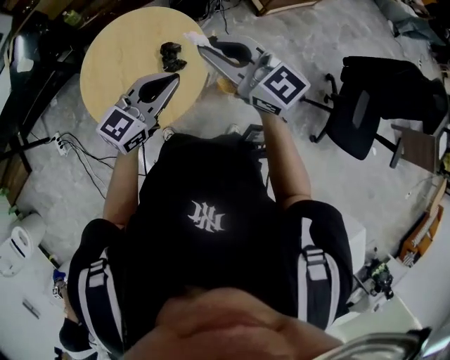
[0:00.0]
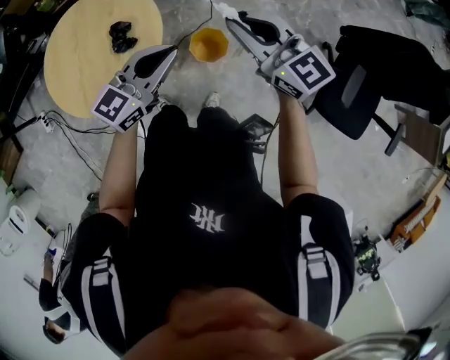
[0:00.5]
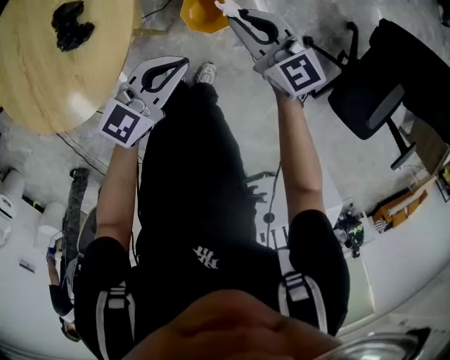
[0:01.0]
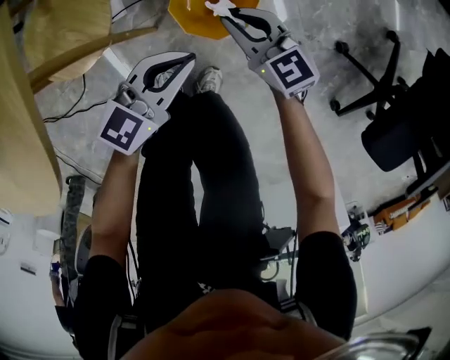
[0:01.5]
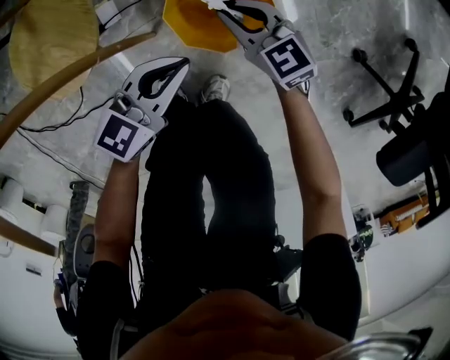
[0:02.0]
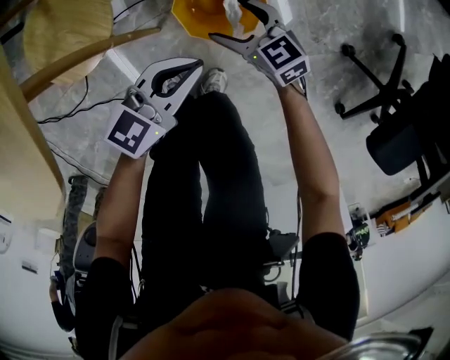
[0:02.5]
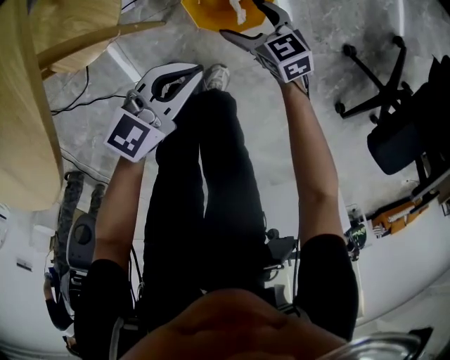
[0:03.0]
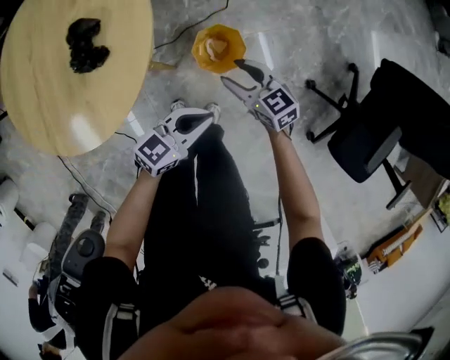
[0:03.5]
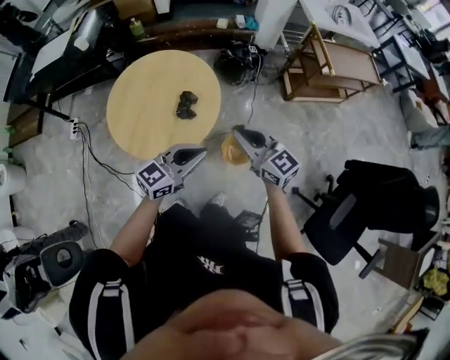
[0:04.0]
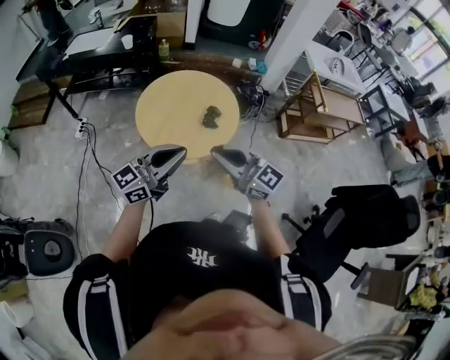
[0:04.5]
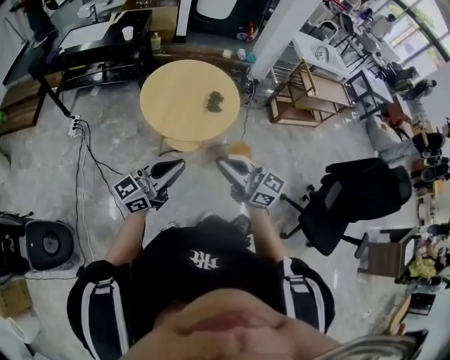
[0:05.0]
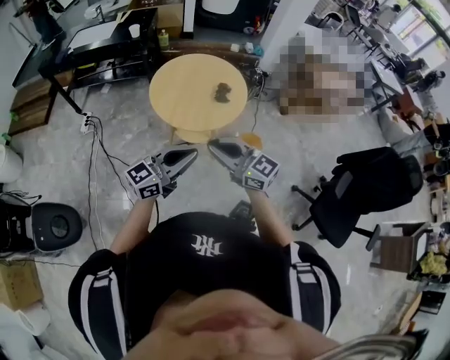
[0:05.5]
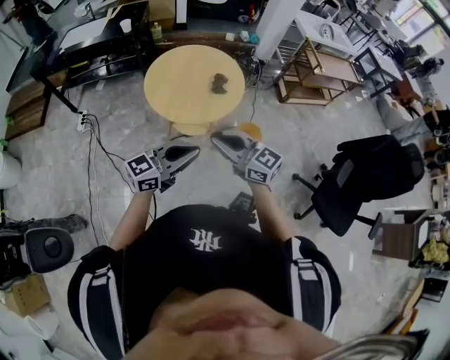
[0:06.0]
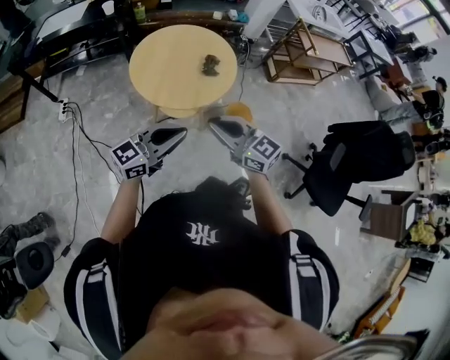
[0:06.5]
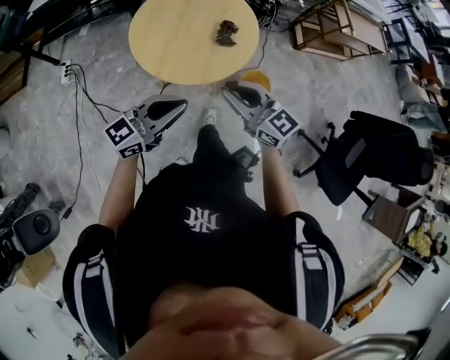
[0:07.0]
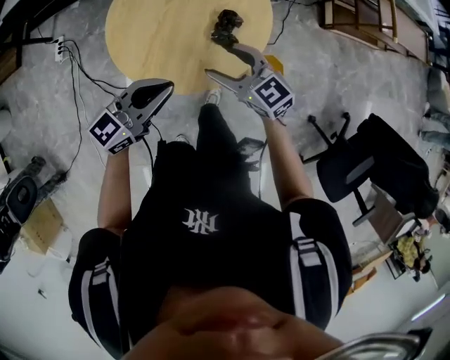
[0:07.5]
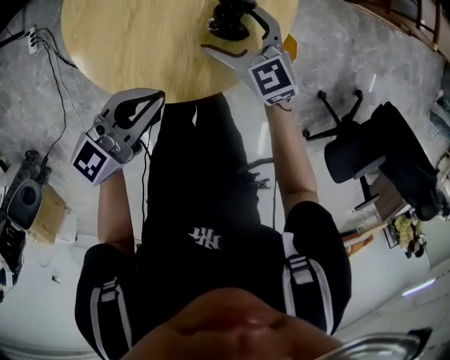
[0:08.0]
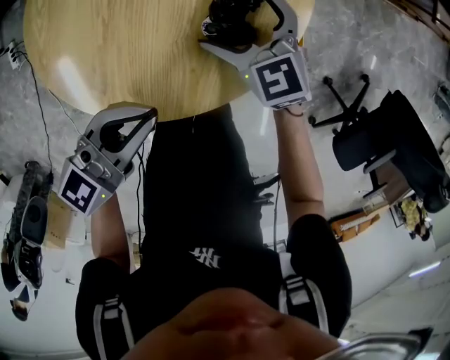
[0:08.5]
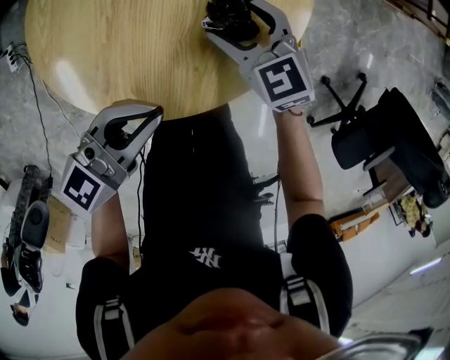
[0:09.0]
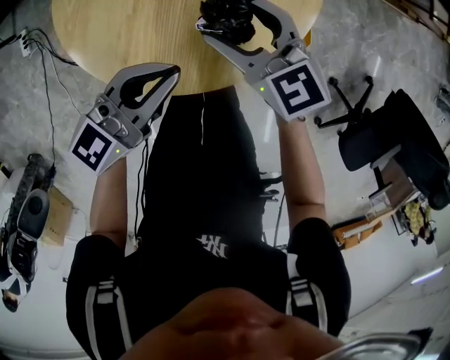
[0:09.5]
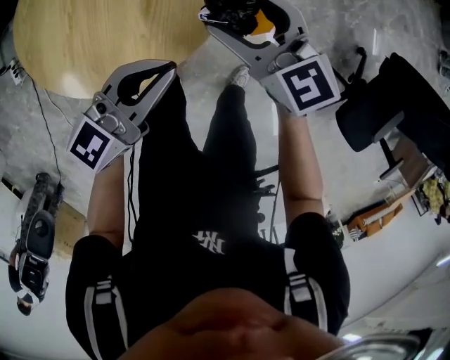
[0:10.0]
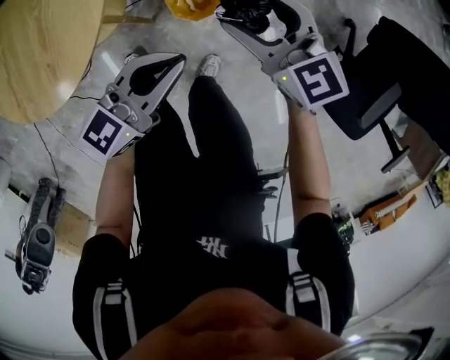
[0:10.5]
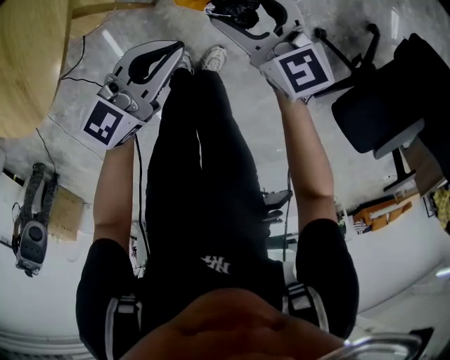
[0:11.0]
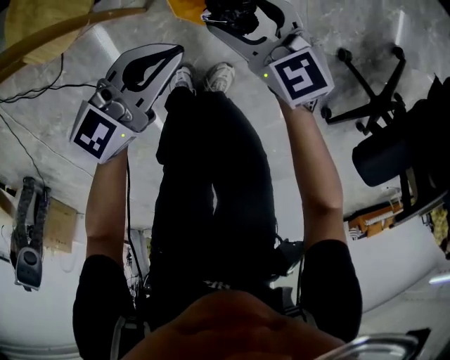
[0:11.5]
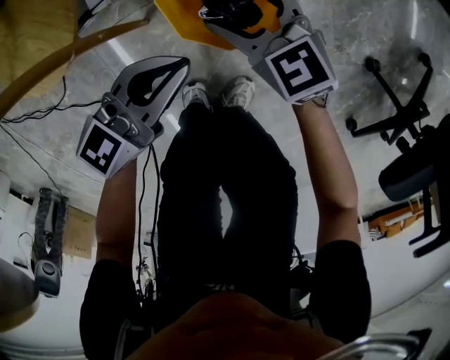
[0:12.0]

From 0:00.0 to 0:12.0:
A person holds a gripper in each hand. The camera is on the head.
From 0:00.0 to 0:02.0: Both grippers move downward, approximately 50 cm. The right gripper swivels roughly 30 degrees.
From 0:02.0 to 0:04.0: The two grippers go roughly 60 cm upward. The left gripper swivels about 20 degrees. Meanwhile the right gripper rotates some 30 degrees, and opens, then closes again.
From 0:04.0 to 0:06.0: Both grippers move backward and to the left, roughly 35 cm.
From 0:06.0 to 0:08.0: Both grippers travel together forward and downward, some 50 cm. The right gripper turns by about 30 degrees, and opens its fingers.
From 0:08.0 to 0:10.0: The right gripper is displaced to the right, upward and backward by some 15 cm. The left gripper travels to the right by about 15 cm.
From 0:10.0 to 0:12.0: The left gripper goes about 50 cm downward and to the right; the right gripper shifts about 50 cm downward.

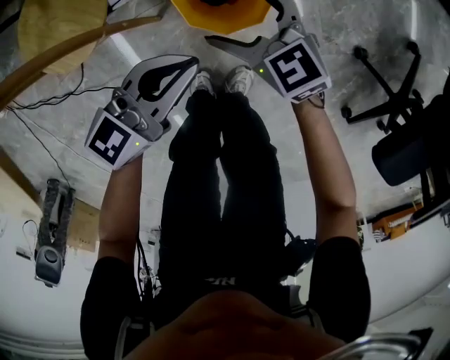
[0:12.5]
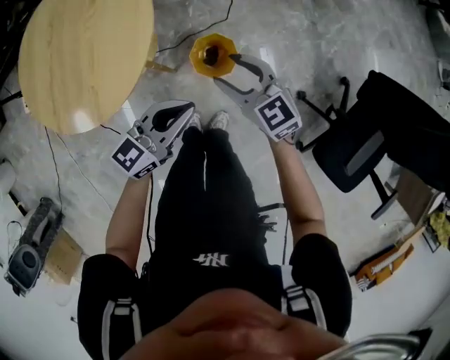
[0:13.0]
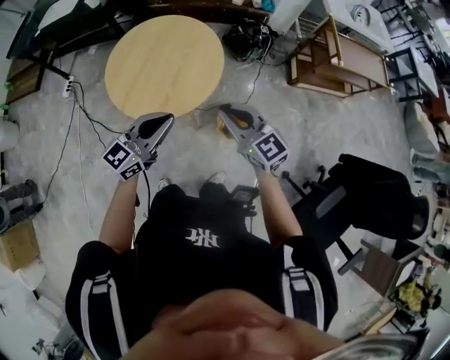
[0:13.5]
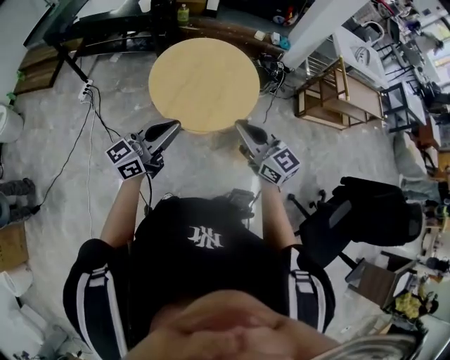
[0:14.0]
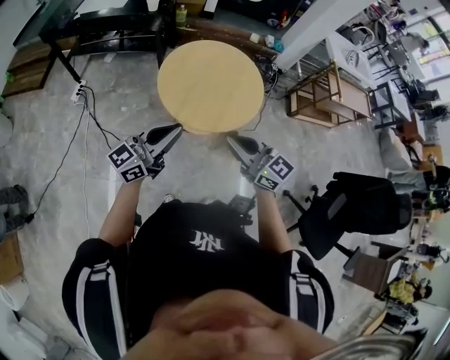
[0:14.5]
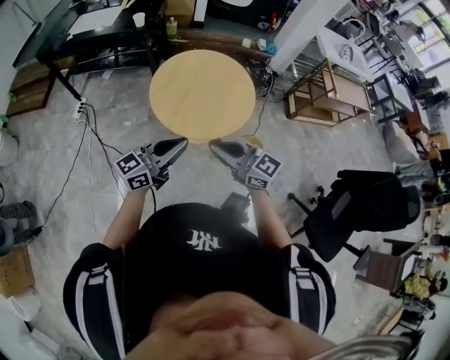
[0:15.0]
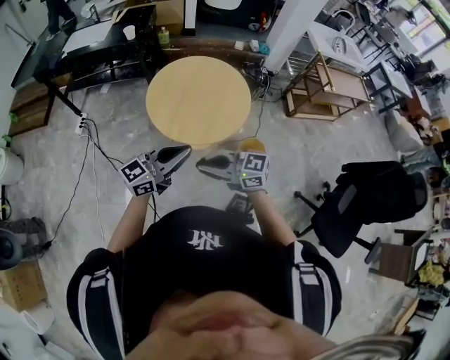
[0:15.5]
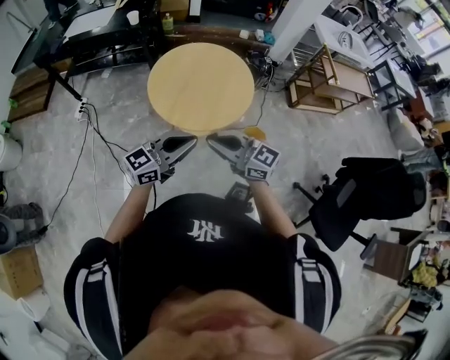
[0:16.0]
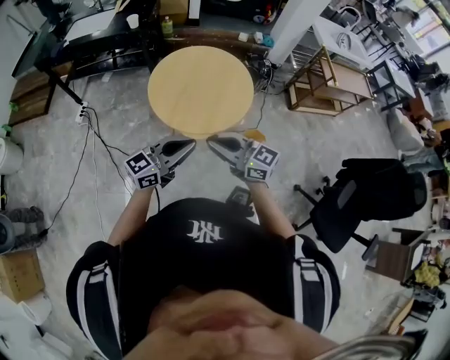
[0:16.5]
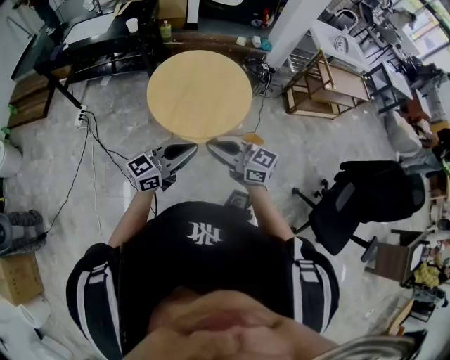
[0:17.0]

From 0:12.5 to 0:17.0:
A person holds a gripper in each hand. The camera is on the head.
From 0:12.5 to 0:14.5: Both grippers are carried to the left and backward, about 40 cm. Both grippers travel together upward, about 60 cm. The right gripper turns by roughly 30 degrees, and closes its fingers; the left gripper swivels approximately 40 degrees.
From 0:14.5 to 0:17.0: The left gripper moves about 10 cm.

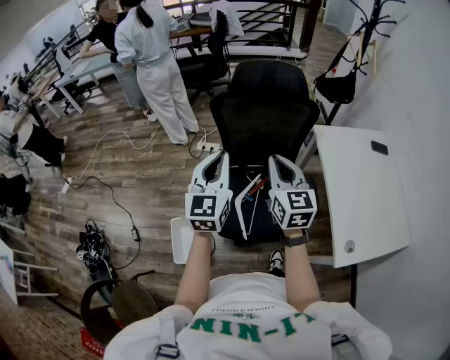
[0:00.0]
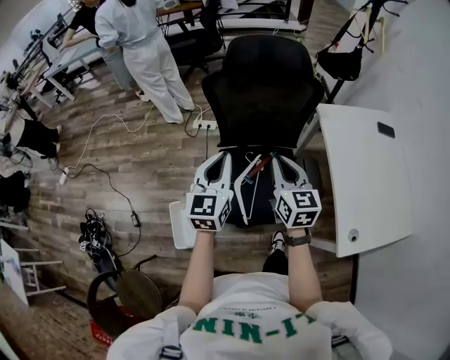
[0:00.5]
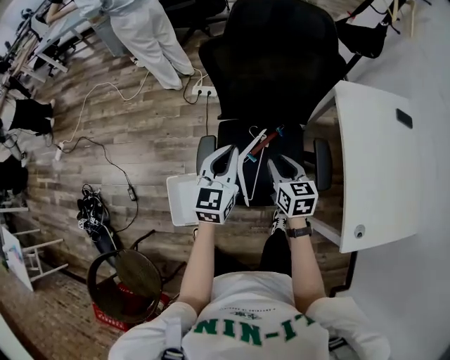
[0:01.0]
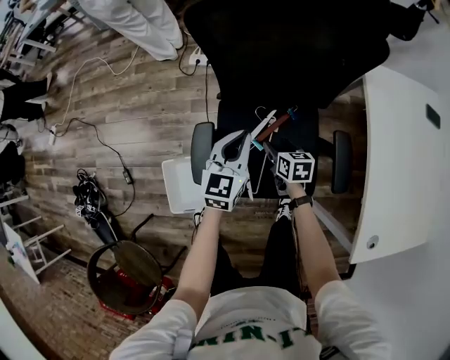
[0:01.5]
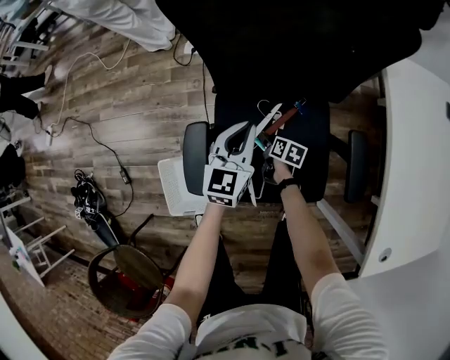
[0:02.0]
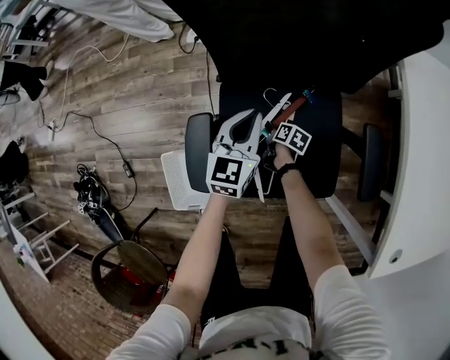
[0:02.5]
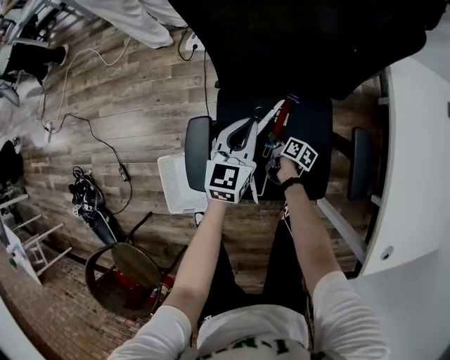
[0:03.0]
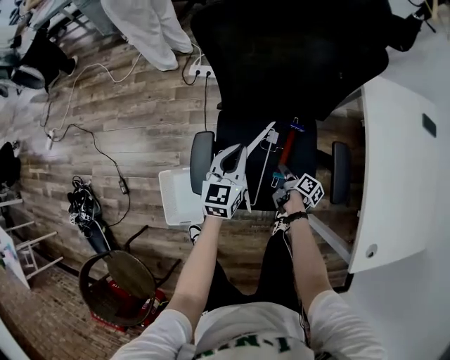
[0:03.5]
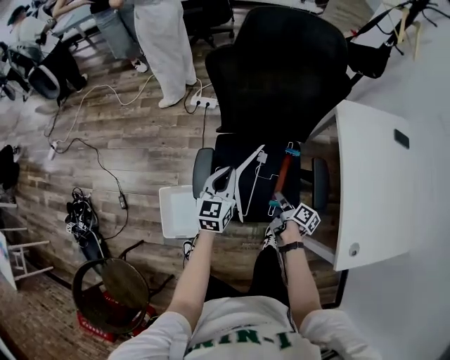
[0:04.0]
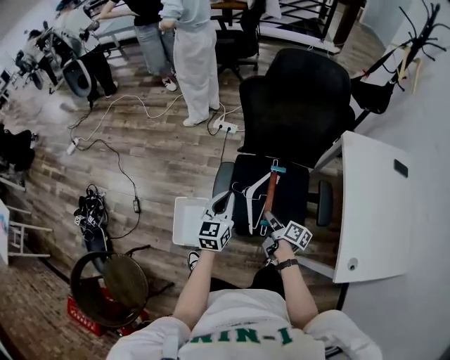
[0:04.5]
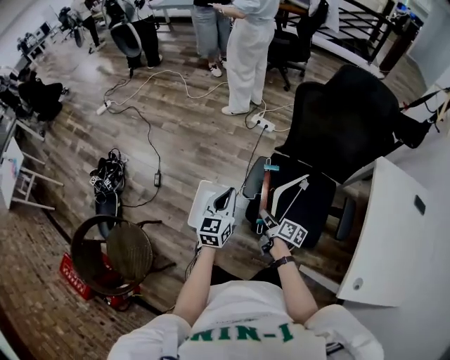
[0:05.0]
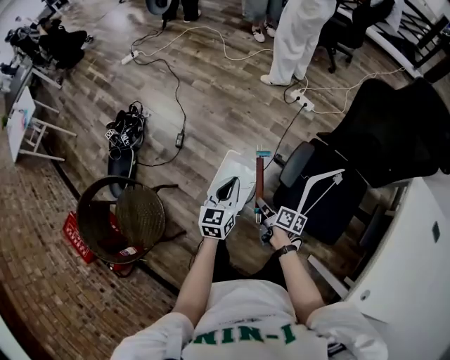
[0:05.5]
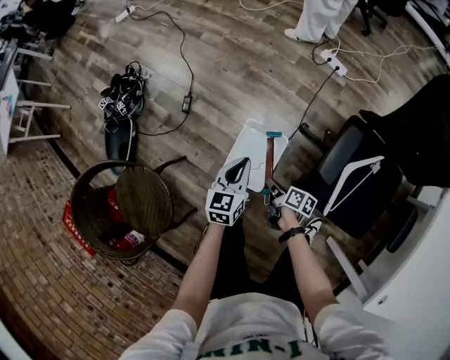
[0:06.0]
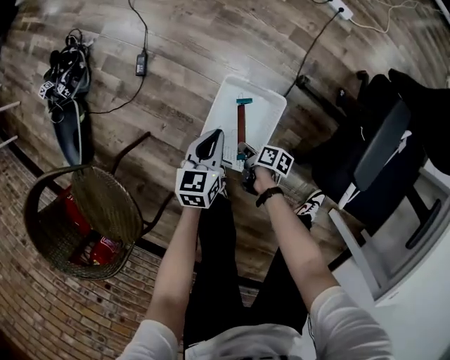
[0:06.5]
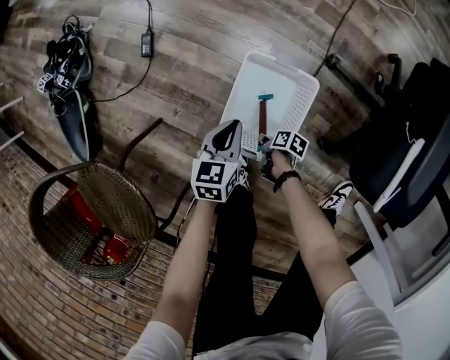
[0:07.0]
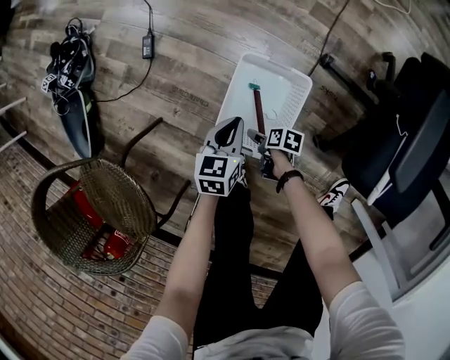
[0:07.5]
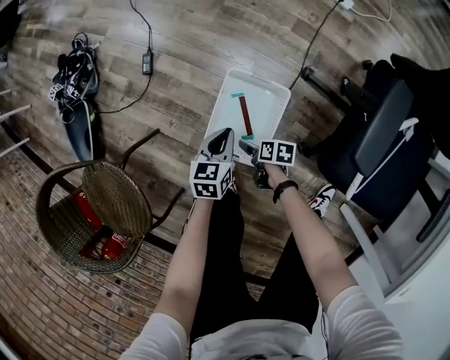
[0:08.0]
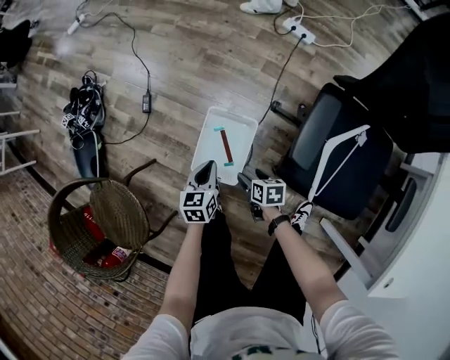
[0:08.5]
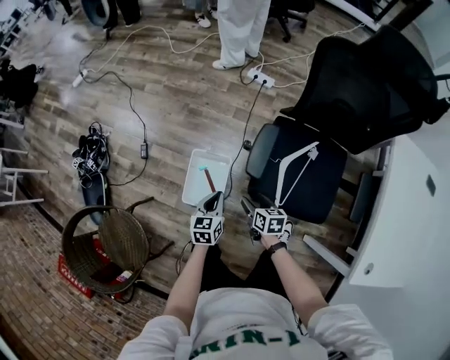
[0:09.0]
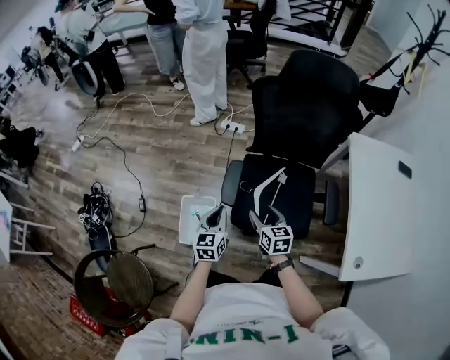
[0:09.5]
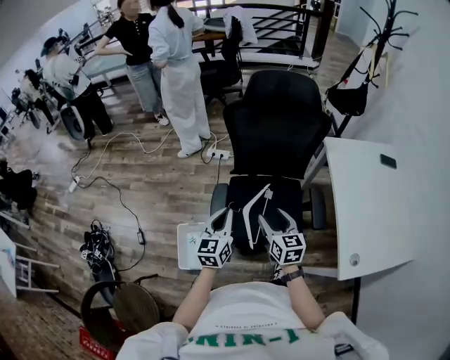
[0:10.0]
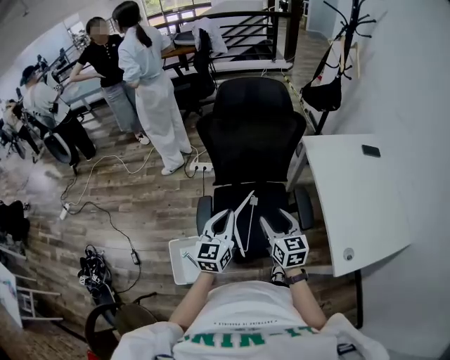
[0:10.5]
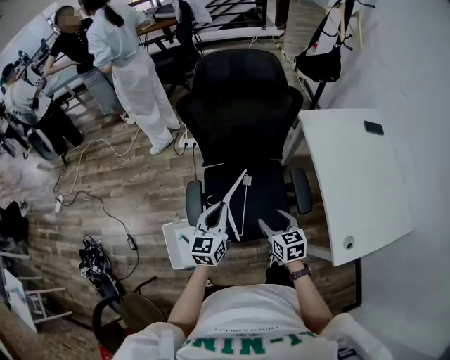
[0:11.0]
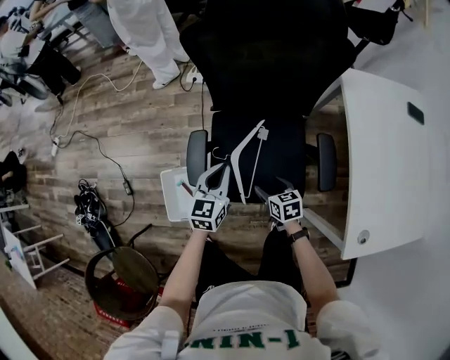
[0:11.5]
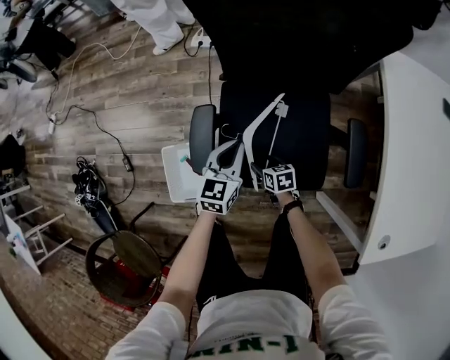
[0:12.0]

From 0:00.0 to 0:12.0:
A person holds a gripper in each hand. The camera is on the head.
From 0:00.0 to 0:02.0: The right gripper shifts some 70 cm downward, angles its fingers downward, by roughly 40 degrees, and opens up; the left gripper travels downward and forward by approximately 50 cm, and rotates approximately 20 degrees.
From 0:02.0 to 0:04.0: The right gripper shifts approximately 30 cm upward and backward, turns by some 30 degrees, and closes up. Meanwhile the left gripper moves upward, backward and to the left, some 20 cm.
From 0:04.0 to 0:06.0: Both grippers are carried roughly 50 cm. The right gripper rotates some 50 degrees. The left gripper swivels approximately 30 degrees.
From 0:06.0 to 0:08.0: Both grippers move downward, about 30 cm. The right gripper turns by approximately 30 degrees, and opens its fingers.
From 0:08.0 to 0:10.0: Both grippers move upward, some 70 cm. The right gripper angles its fingers upward, by approximately 40 degrees, and closes up. The left gripper tilts its fingers some 30 degrees upward.
From 0:10.0 to 0:12.0: The right gripper travels downward by roughly 50 cm, and tilts its fingers roughly 30 degrees downward; the left gripper is displaced downward and forward by roughly 30 cm.
